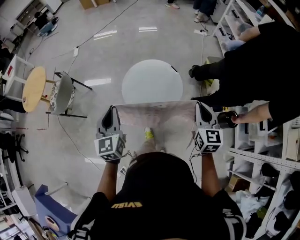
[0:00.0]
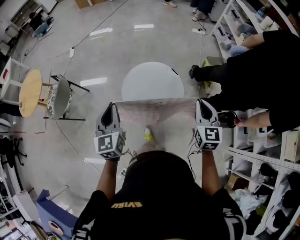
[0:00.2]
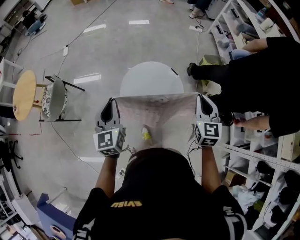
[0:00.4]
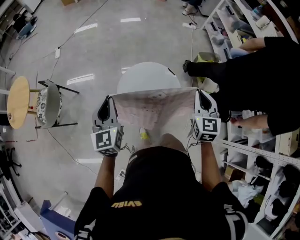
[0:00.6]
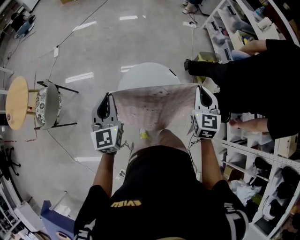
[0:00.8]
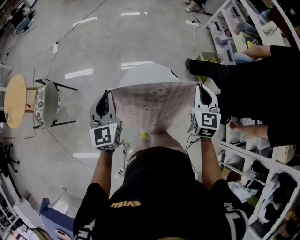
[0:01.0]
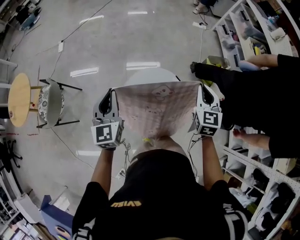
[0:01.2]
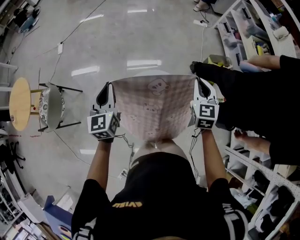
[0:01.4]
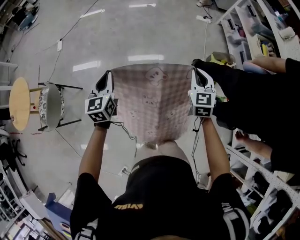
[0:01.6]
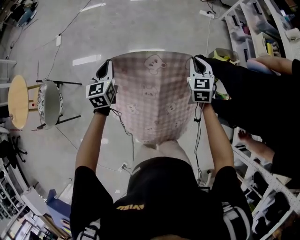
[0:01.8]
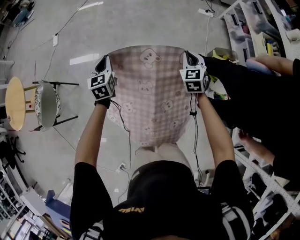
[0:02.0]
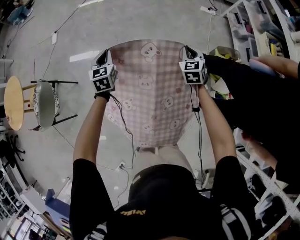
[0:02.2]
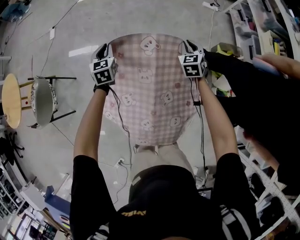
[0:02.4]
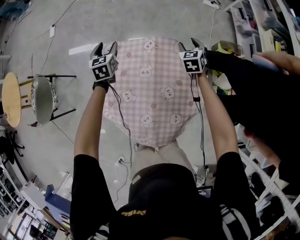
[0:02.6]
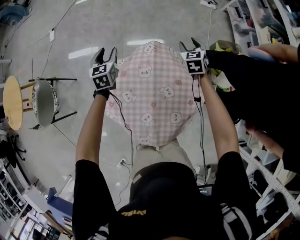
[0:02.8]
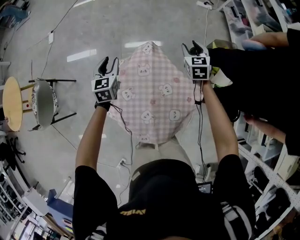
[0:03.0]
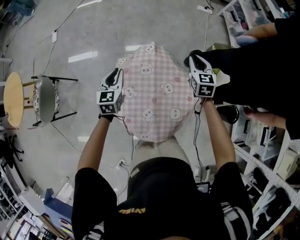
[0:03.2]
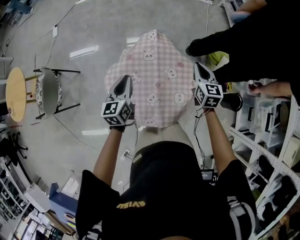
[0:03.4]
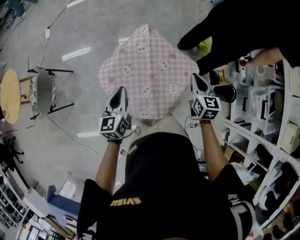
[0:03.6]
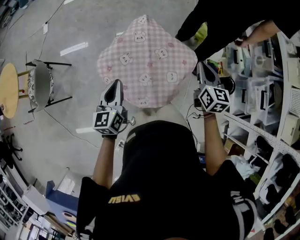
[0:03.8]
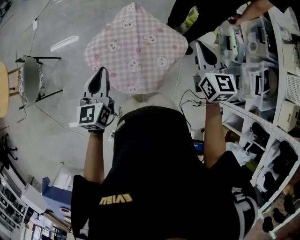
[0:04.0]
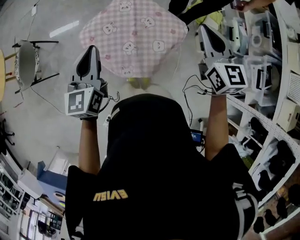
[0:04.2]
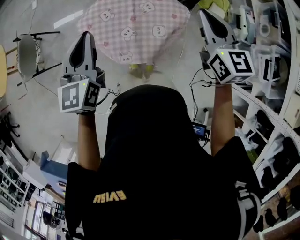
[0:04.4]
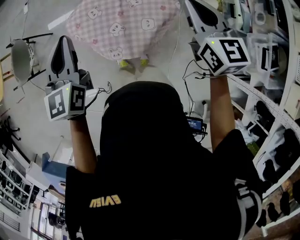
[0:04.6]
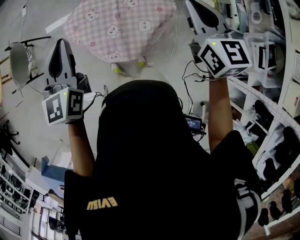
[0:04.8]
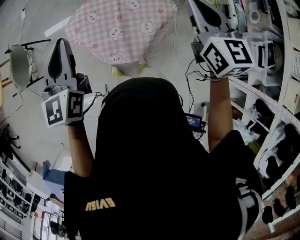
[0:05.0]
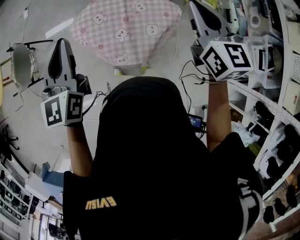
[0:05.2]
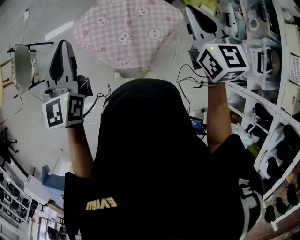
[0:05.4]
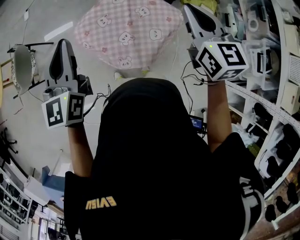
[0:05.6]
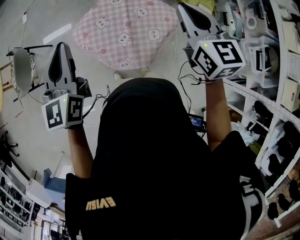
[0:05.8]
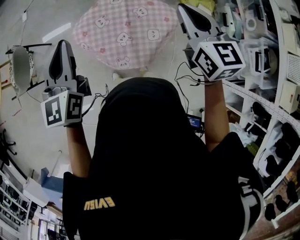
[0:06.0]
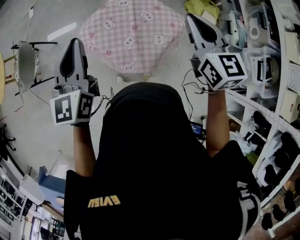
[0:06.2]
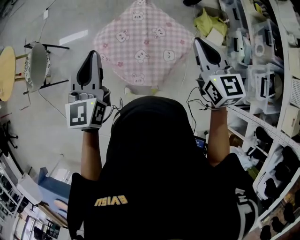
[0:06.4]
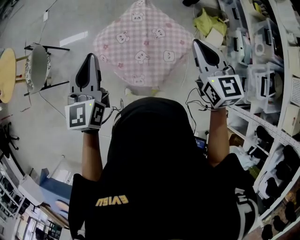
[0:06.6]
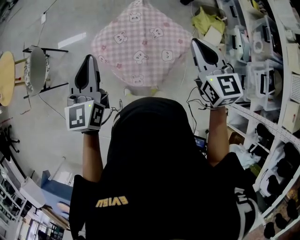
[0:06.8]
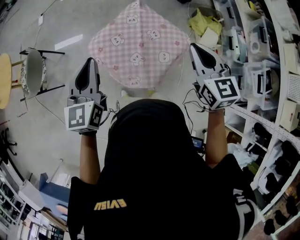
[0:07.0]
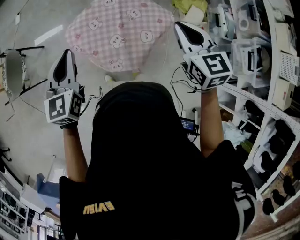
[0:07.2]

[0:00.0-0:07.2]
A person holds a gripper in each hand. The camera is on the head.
0:00.0 to 0:01.4: Both grippers travel together forward, about 35 cm.
0:01.4 to 0:02.8: Both grippers travel together forward and downward, about 30 cm. The left gripper opens; the right gripper opens up.
0:02.8 to 0:04.4: Both grippers are carried backward, roughly 50 cm. The two grippers go roughly 25 cm upward. The right gripper changes its angle by roughly 30 degrees, and closes its fingers. The left gripper swivels some 20 degrees, and closes up.
0:04.4 to 0:05.8: Both grippers move to the left, some 10 cm.
0:05.8 to 0:07.2: The two grippers go about 5 cm downward.

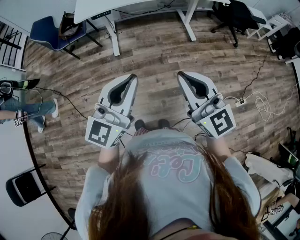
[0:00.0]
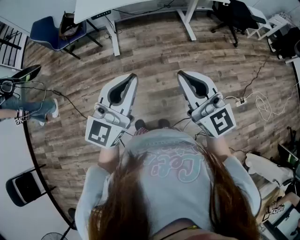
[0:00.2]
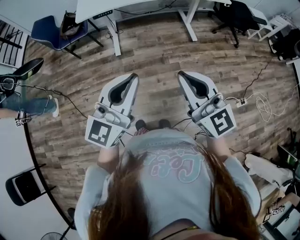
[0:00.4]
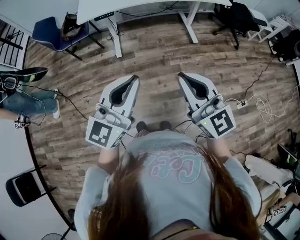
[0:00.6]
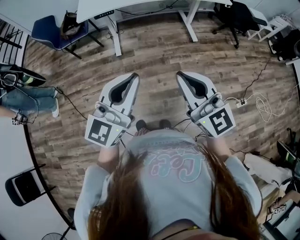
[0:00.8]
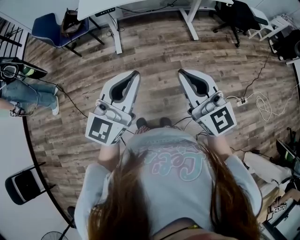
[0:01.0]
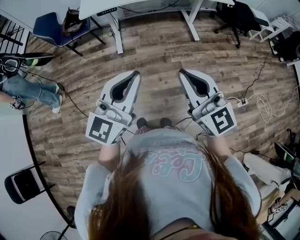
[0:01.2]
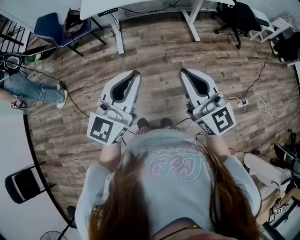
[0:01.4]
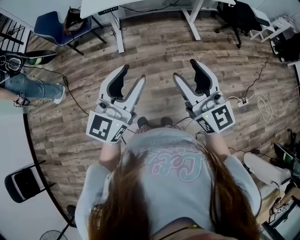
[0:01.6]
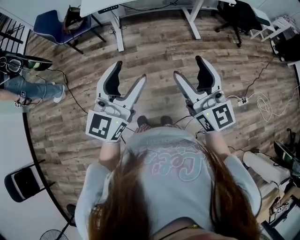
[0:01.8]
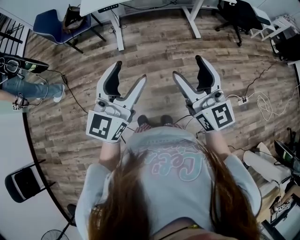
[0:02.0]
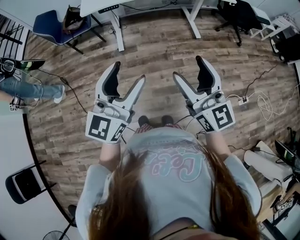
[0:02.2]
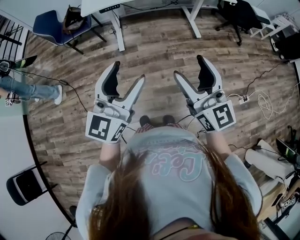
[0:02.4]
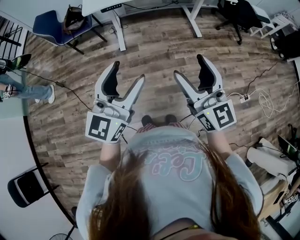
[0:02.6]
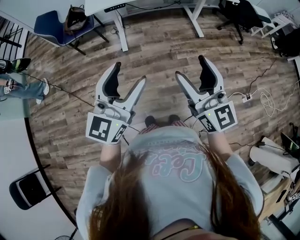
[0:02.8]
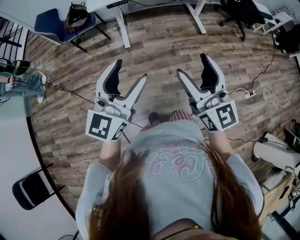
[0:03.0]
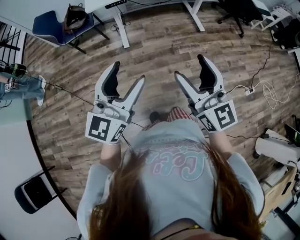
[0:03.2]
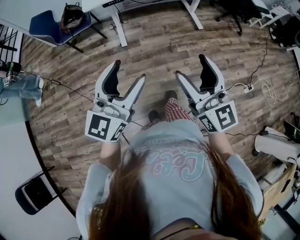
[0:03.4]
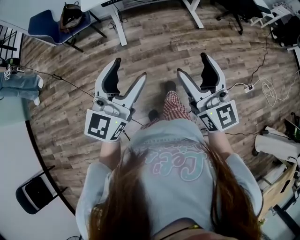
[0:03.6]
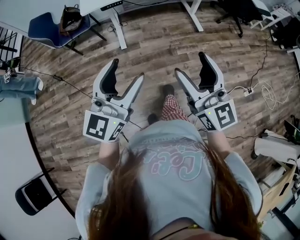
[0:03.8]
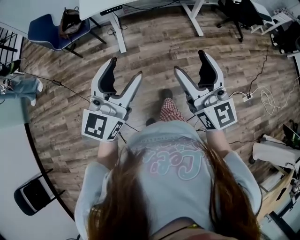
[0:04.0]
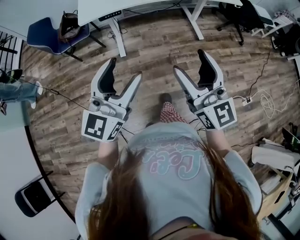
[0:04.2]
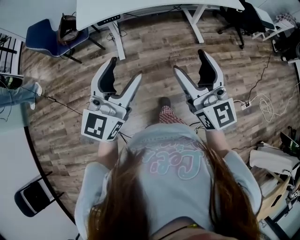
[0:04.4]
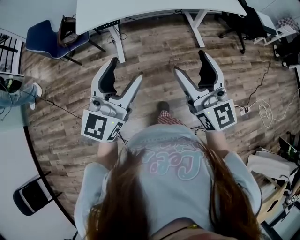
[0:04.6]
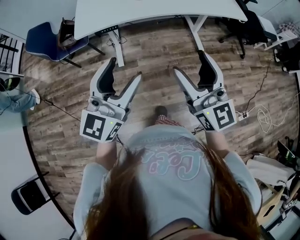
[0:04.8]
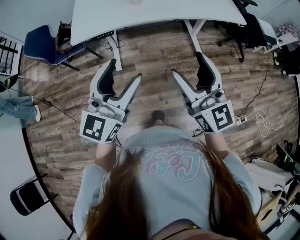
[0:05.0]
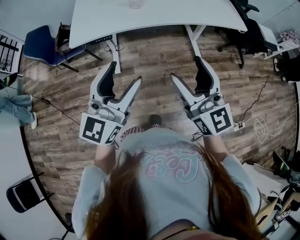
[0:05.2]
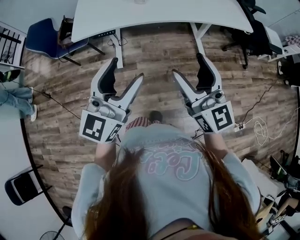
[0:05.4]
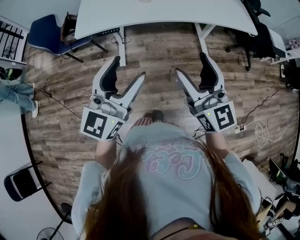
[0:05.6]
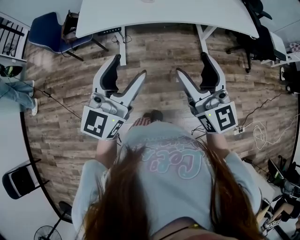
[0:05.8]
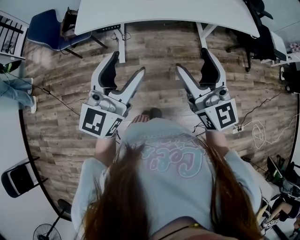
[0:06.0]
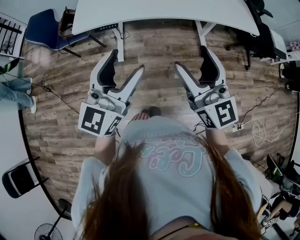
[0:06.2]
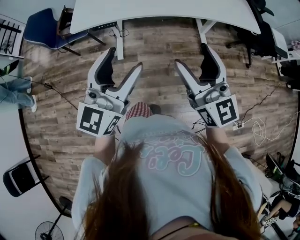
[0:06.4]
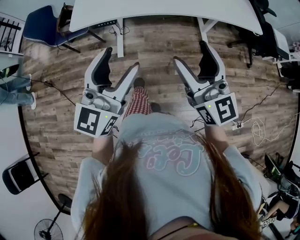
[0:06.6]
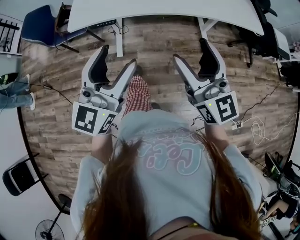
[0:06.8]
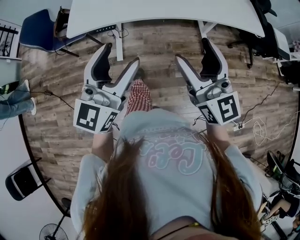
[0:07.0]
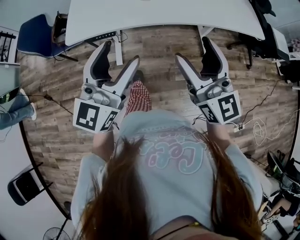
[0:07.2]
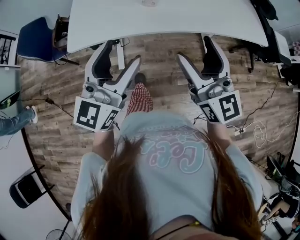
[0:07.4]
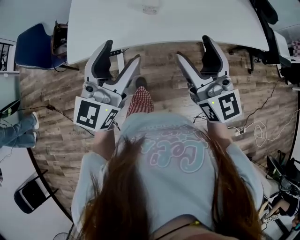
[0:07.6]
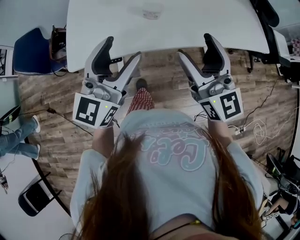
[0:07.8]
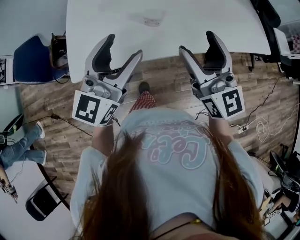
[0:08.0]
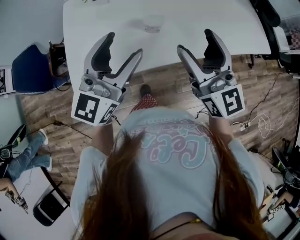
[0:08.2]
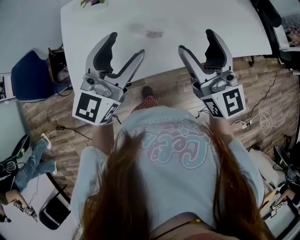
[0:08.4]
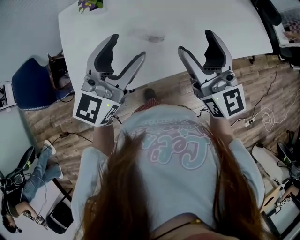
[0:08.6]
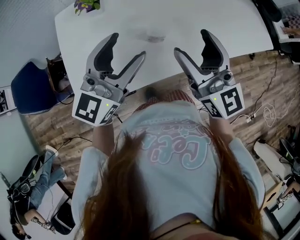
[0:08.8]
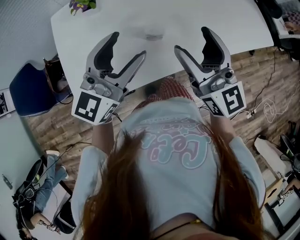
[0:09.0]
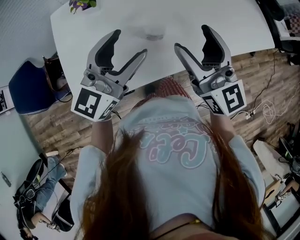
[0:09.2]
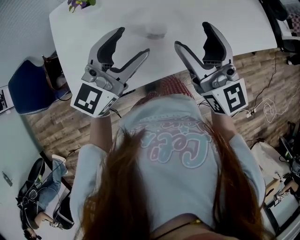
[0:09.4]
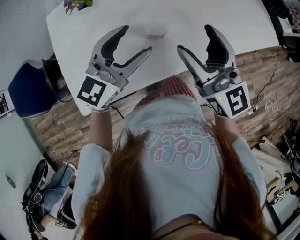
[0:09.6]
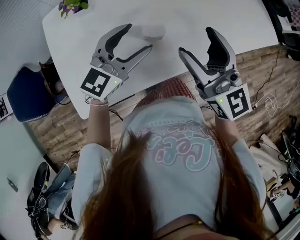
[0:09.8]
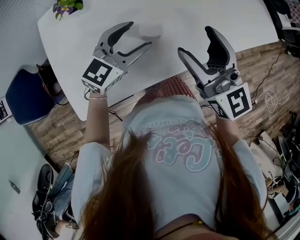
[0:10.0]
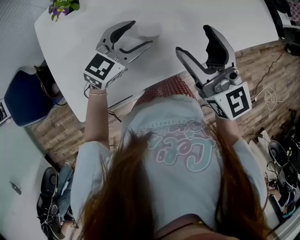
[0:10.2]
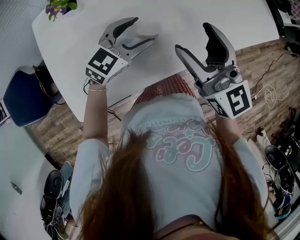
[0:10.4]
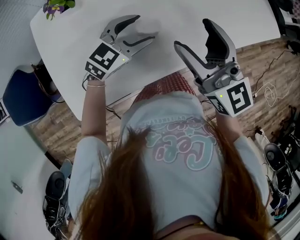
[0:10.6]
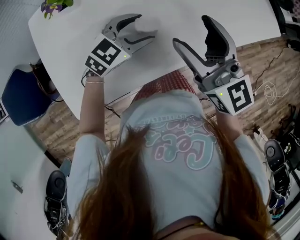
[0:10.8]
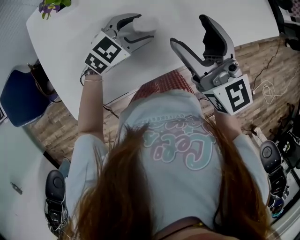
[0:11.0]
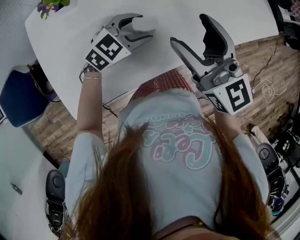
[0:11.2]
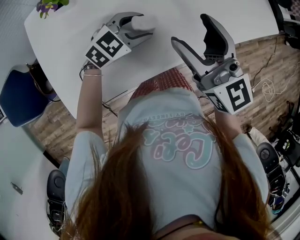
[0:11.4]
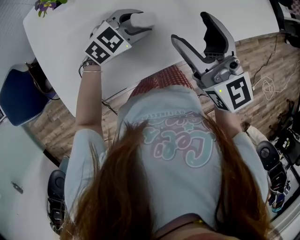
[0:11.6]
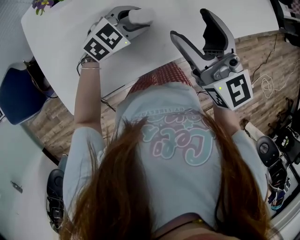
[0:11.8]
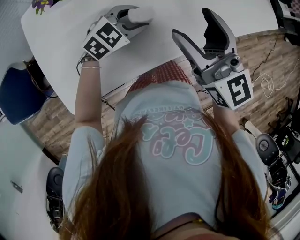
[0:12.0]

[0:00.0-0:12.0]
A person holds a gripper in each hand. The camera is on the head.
0:00.0 to 0:01.6: The right gripper opens up, while the left gripper opens.
0:01.6 to 0:03.0: Both grippers travel together to the left, approximately 10 cm. The left gripper opens.
0:03.0 to 0:04.4: The two grippers go some 15 cm forward.
0:04.4 to 0:06.0: The right gripper goes some 15 cm forward. The left gripper travels forward and to the right by some 15 cm.
0:06.0 to 0:07.6: The two grippers go approximately 20 cm forward.
0:07.6 to 0:09.0: The grippers both shift forward by about 20 cm. The left gripper swivels roughly 20 degrees.
0:09.0 to 0:10.4: The left gripper travels downward and forward by some 20 cm, and turns by roughly 30 degrees. The right gripper moves downward, about 5 cm.
0:10.4 to 0:12.0: The left gripper moves downward, some 5 cm.

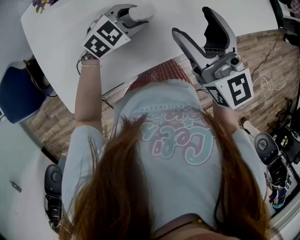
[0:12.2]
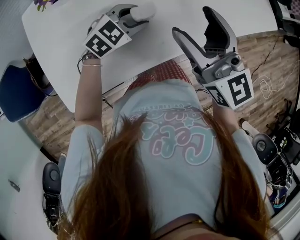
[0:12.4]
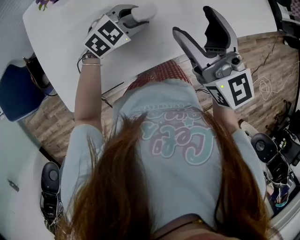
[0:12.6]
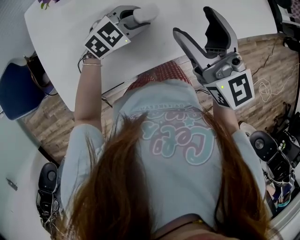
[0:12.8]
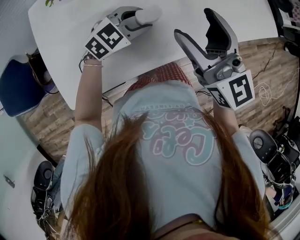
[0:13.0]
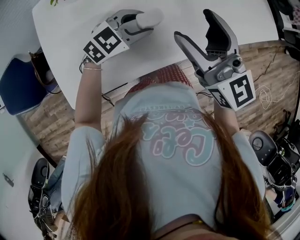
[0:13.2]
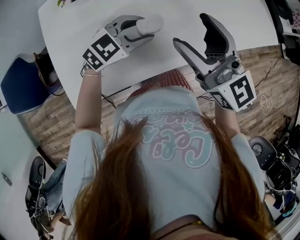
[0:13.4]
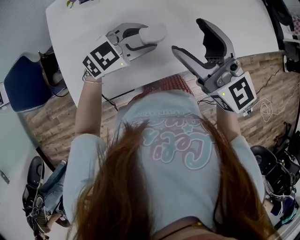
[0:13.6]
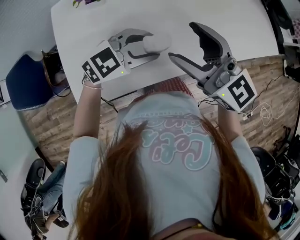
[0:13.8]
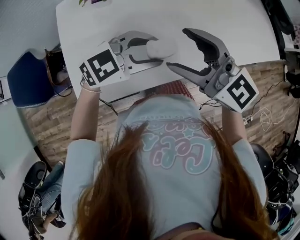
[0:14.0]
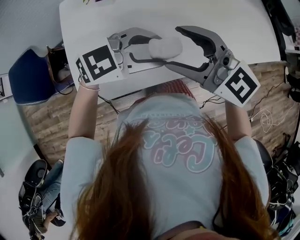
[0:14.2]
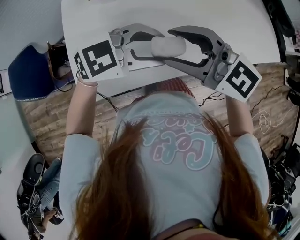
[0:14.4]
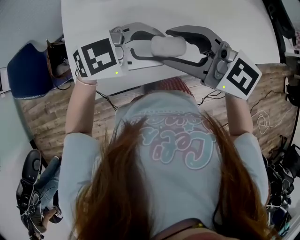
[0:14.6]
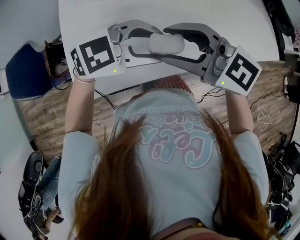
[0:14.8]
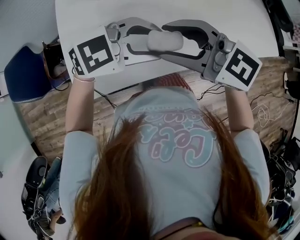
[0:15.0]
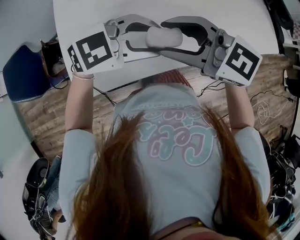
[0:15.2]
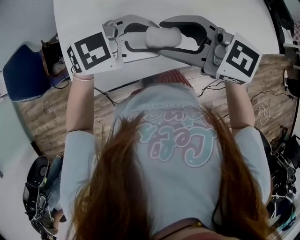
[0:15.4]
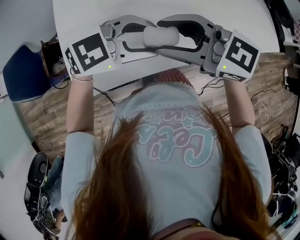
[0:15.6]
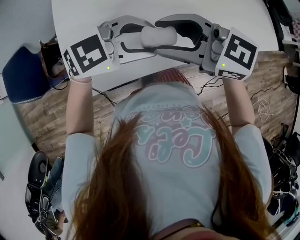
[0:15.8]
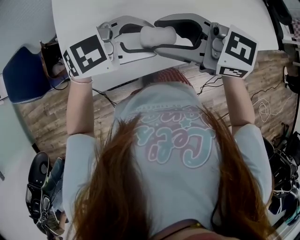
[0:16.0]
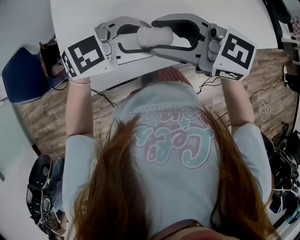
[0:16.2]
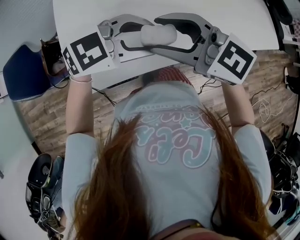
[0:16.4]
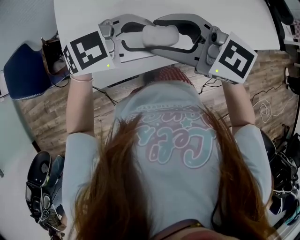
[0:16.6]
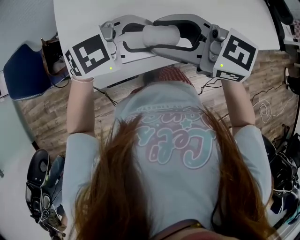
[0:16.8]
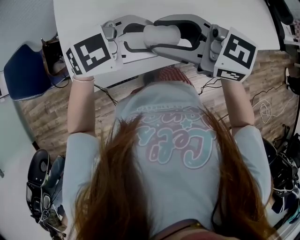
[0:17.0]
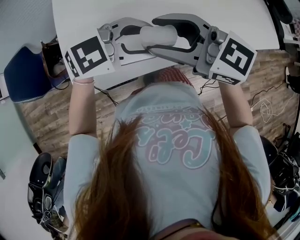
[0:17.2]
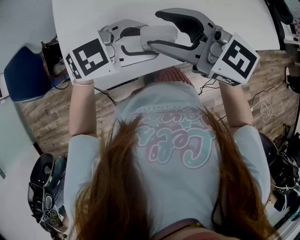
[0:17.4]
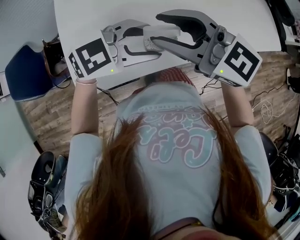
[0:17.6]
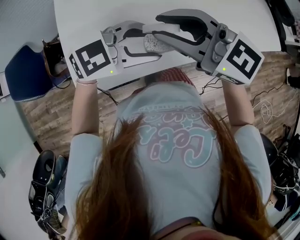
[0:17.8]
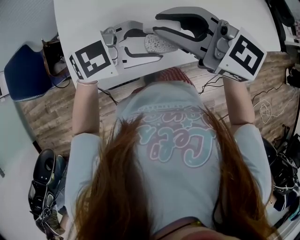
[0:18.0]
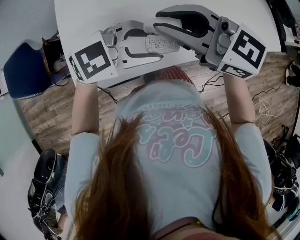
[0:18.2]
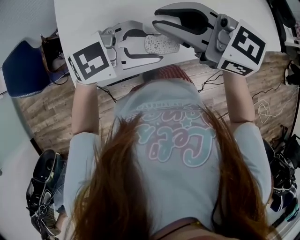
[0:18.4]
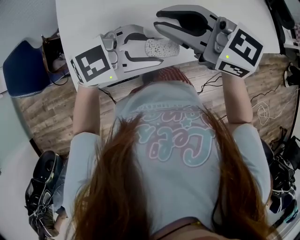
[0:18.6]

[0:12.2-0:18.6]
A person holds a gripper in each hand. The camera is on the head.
0:12.2 to 0:13.8: The left gripper travels upward by approximately 10 cm. The right gripper ends up about 10 cm from where it was, and turns by some 20 degrees.
0:13.8 to 0:15.4: The right gripper shifts by about 5 cm, and turns by approximately 30 degrees; the left gripper goes about 5 cm upward.
0:15.4 to 0:17.0: The grippers make only small movements.
0:17.0 to 0:18.6: The right gripper closes up.
